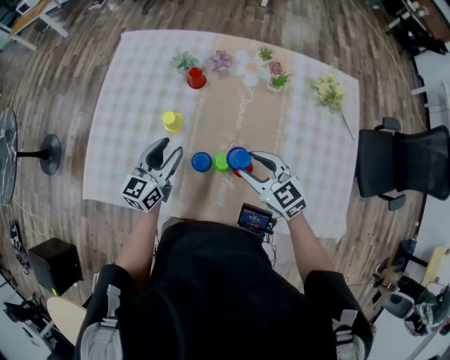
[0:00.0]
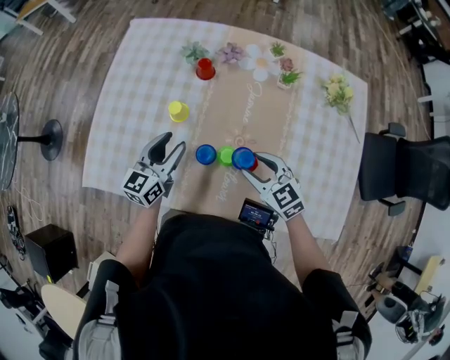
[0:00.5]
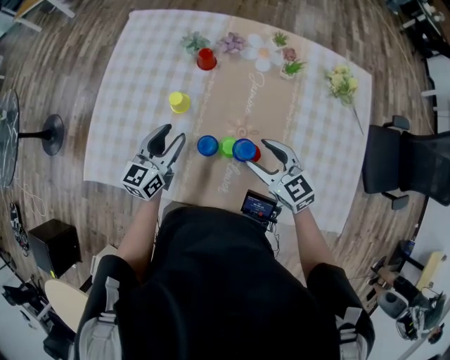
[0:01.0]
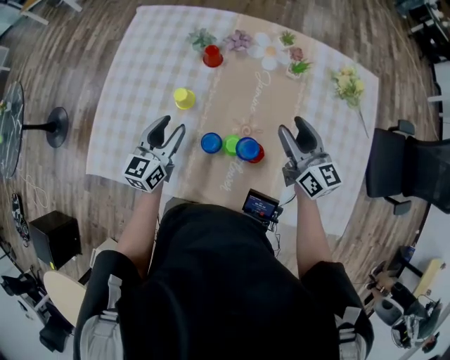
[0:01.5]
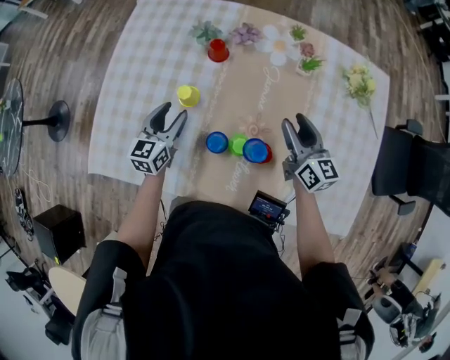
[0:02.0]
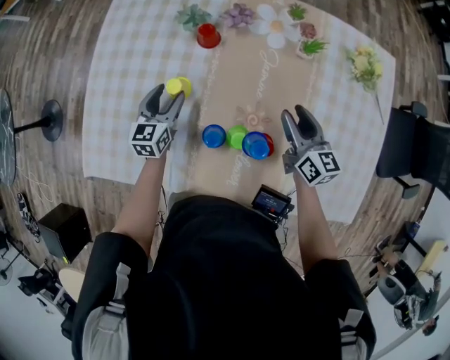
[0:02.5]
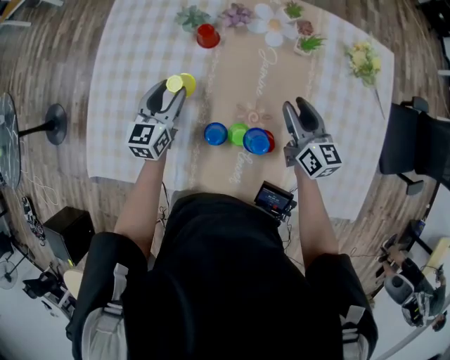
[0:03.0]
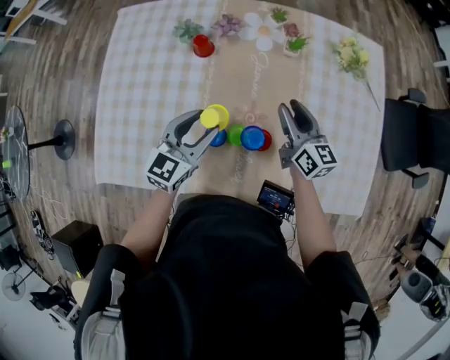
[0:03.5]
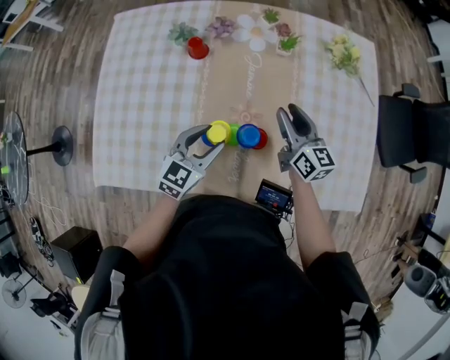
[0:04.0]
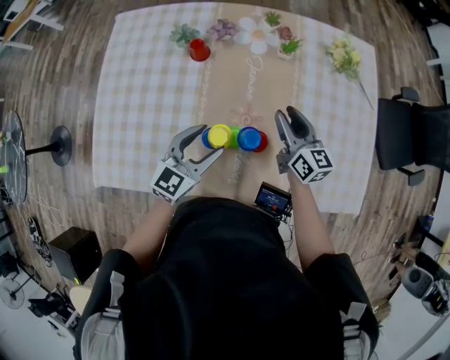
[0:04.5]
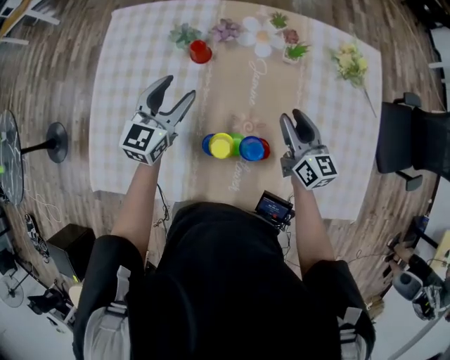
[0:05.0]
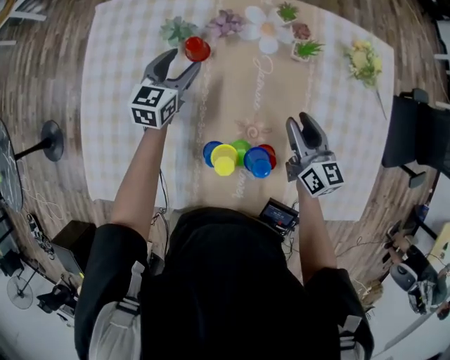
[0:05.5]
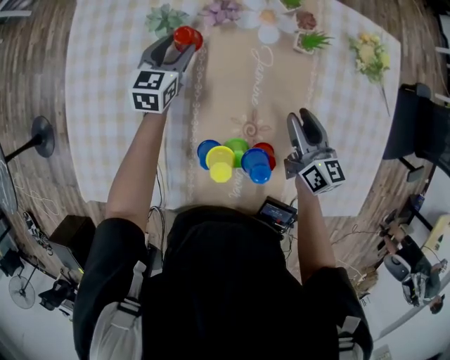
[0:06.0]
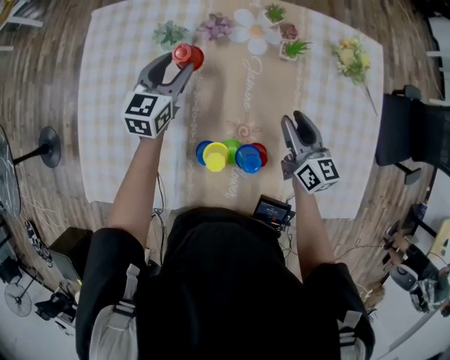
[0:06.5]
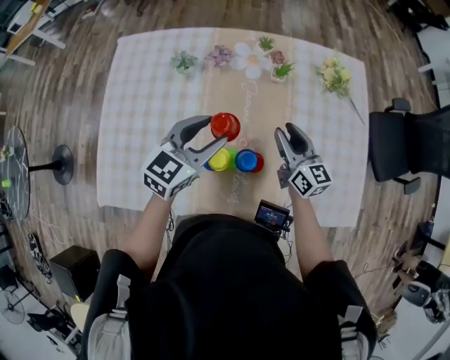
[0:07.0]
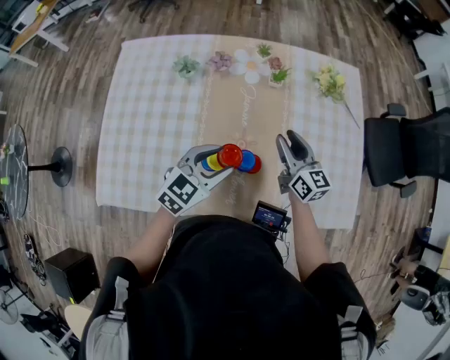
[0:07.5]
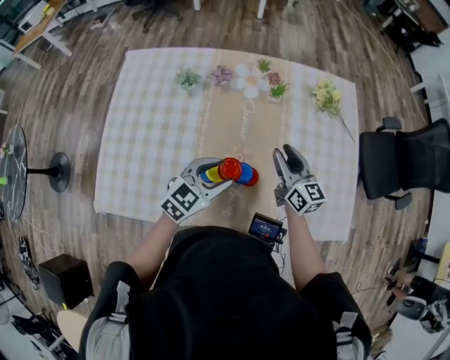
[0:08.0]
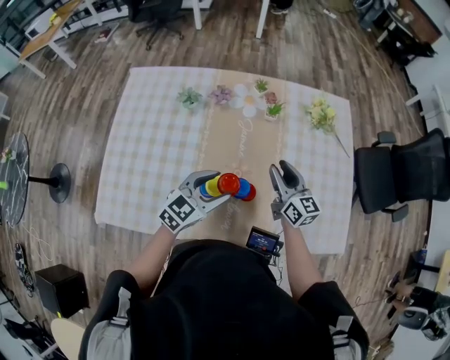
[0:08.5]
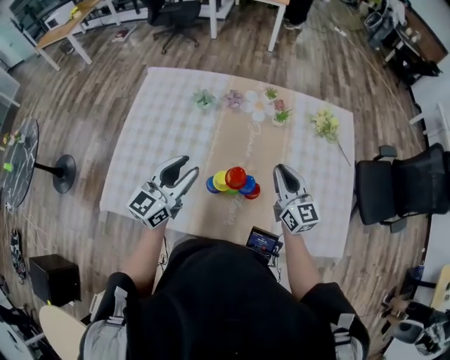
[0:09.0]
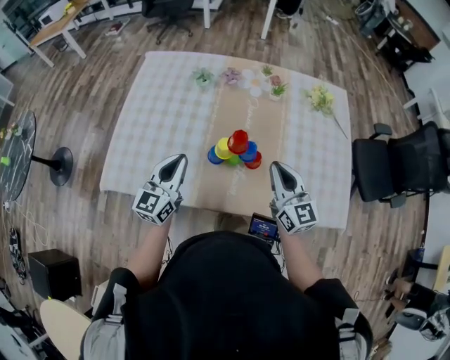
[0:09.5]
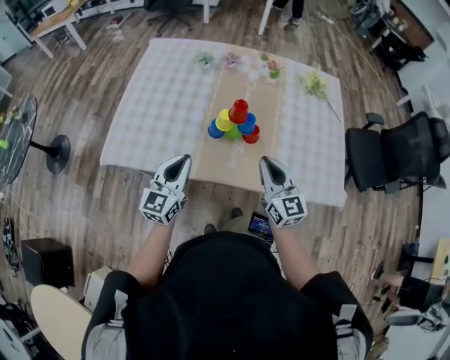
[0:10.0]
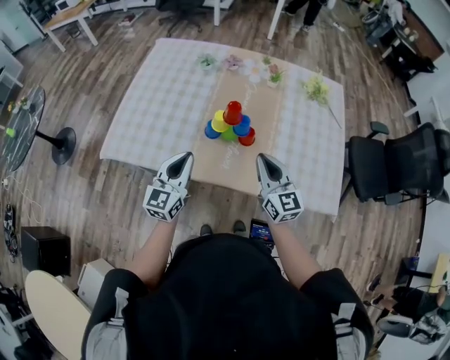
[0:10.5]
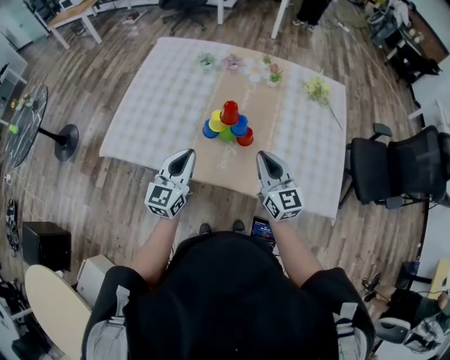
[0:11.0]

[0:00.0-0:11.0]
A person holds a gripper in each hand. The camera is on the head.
0:00.0 to 0:02.0: The left gripper shifts approximately 10 cm downward and forward, while the right gripper shifts some 15 cm to the right and forward, and changes its angle by roughly 40 degrees.
0:02.0 to 0:03.5: The left gripper travels to the right and upward by some 15 cm, and rotates approximately 20 degrees.
0:03.5 to 0:05.5: The left gripper moves forward and to the left, roughly 25 cm.
0:05.5 to 0:07.5: The left gripper is displaced backward, to the right and upward by approximately 30 cm, and swivels approximately 30 degrees; the right gripper moves upward and backward, some 10 cm.
0:07.5 to 0:09.0: The left gripper moves to the left and upward, some 15 cm, and rotates approximately 40 degrees, while the right gripper travels upward by some 5 cm, and closes.
0:09.0 to 0:11.0: The two grippers go roughly 20 cm backward. The left gripper closes its fingers.

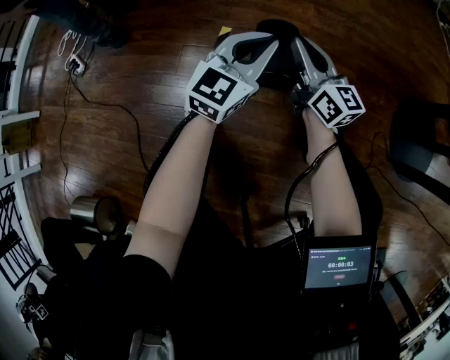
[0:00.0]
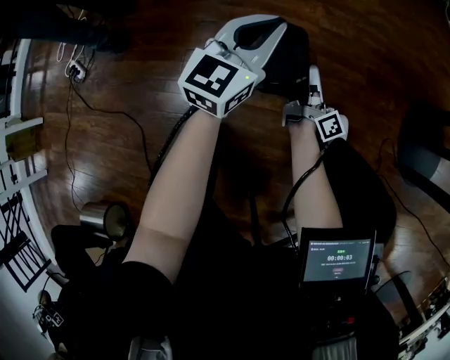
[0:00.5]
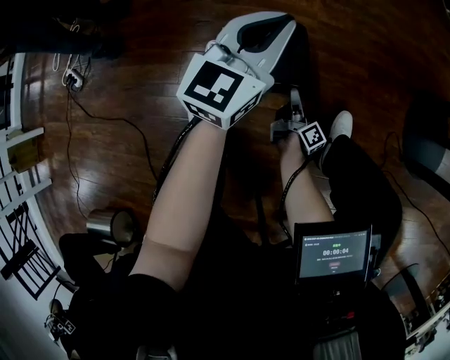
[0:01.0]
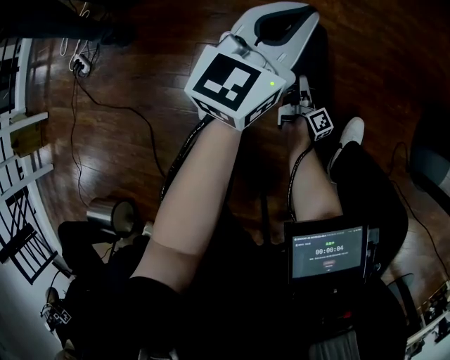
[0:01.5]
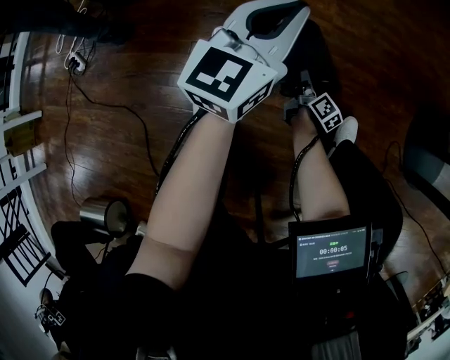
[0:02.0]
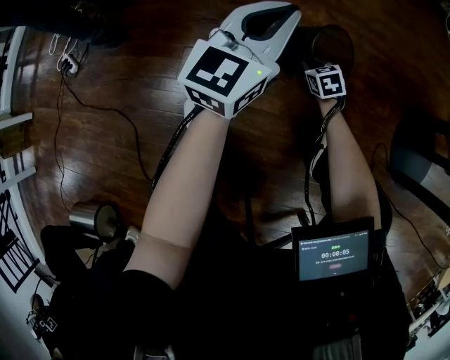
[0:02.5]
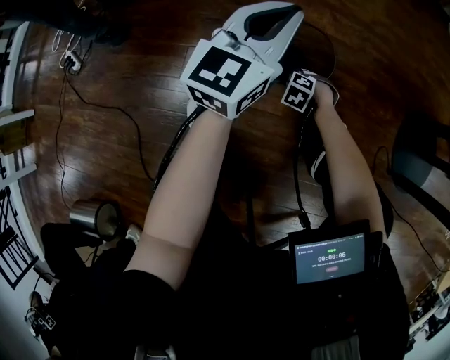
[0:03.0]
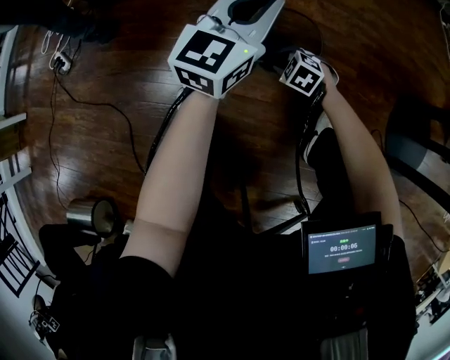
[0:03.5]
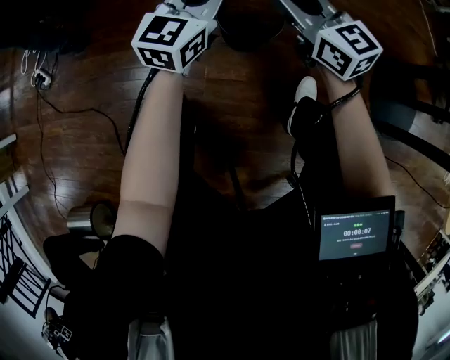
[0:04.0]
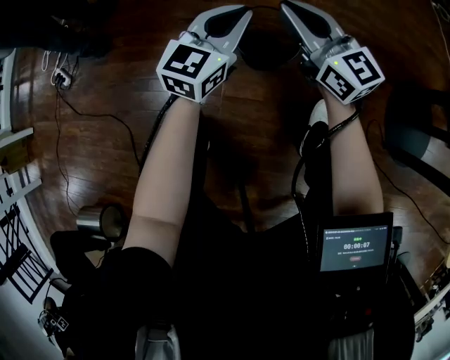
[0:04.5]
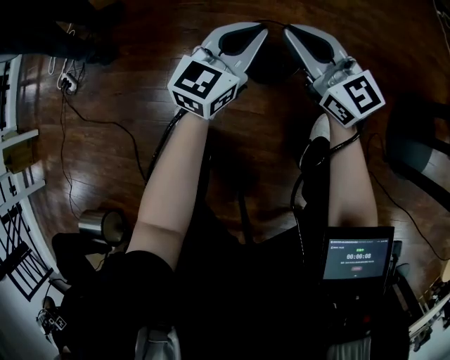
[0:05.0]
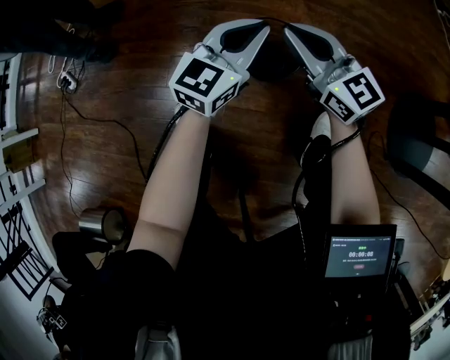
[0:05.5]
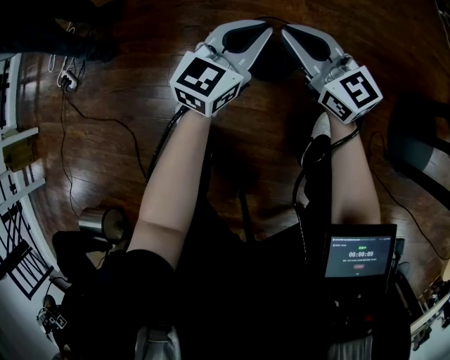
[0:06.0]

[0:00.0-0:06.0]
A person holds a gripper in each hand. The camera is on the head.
0:00.0 to 0:02.0: The right gripper goes some 30 cm downward, turns by approximately 50 degrees, and opens and closes again. Meanwhile the left gripper is displaced forward and upward by roughly 10 cm.
0:02.0 to 0:04.0: The right gripper is displaced upward by some 35 cm, rolls counterclockwise, seen from behind, by about 60 degrees, and opens and closes again.
0:04.0 to 0:06.0: The left gripper changes place by about 5 cm.

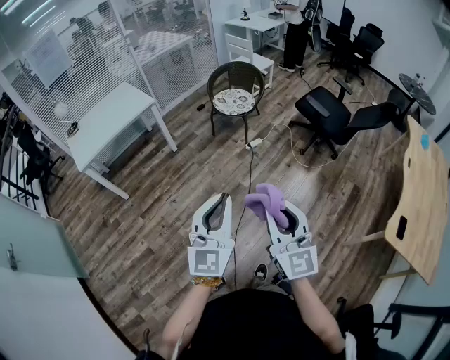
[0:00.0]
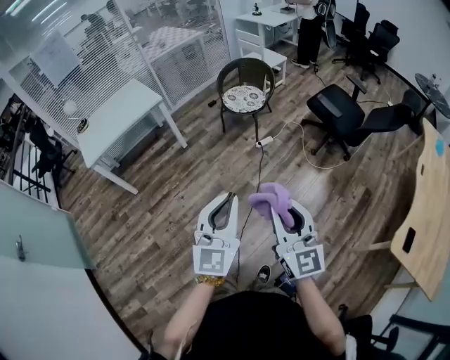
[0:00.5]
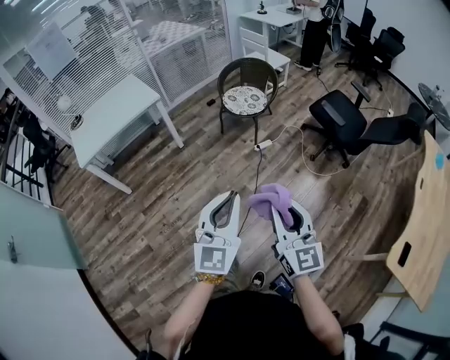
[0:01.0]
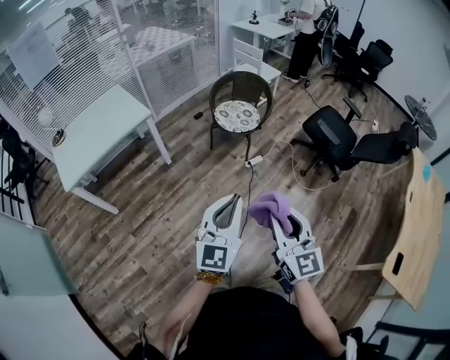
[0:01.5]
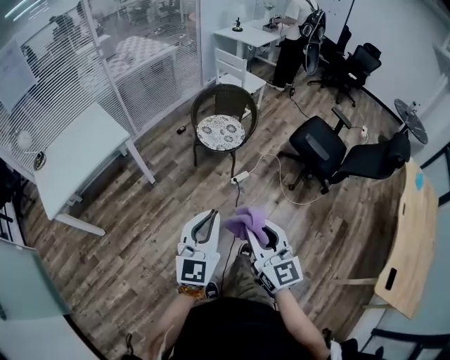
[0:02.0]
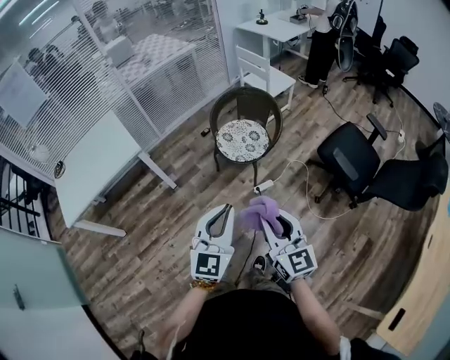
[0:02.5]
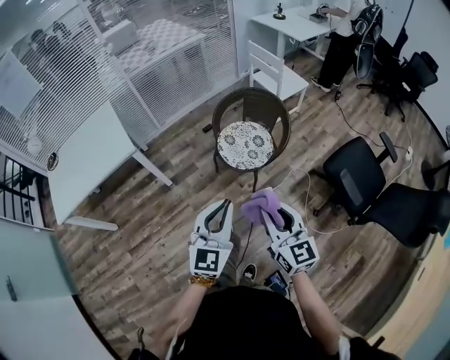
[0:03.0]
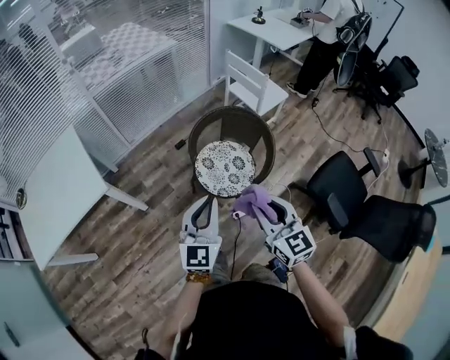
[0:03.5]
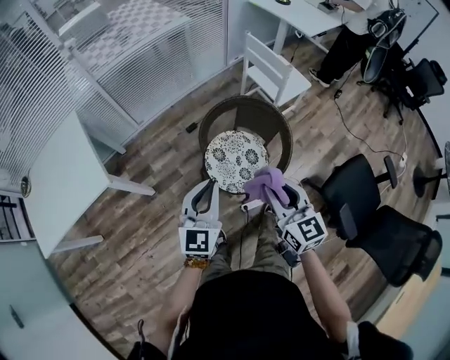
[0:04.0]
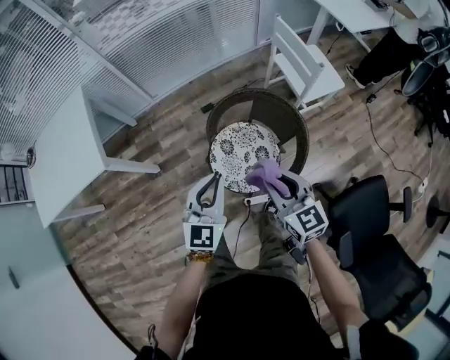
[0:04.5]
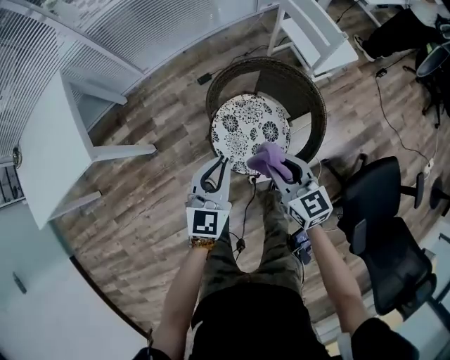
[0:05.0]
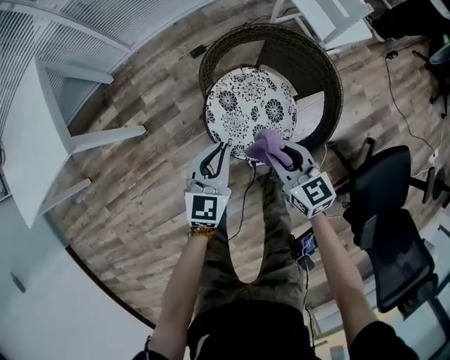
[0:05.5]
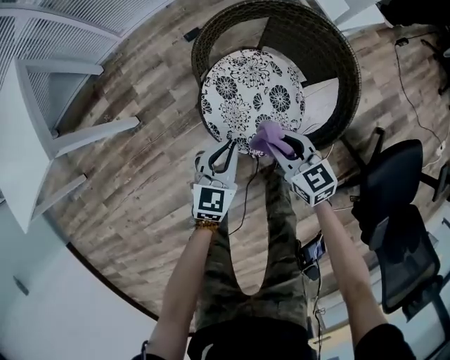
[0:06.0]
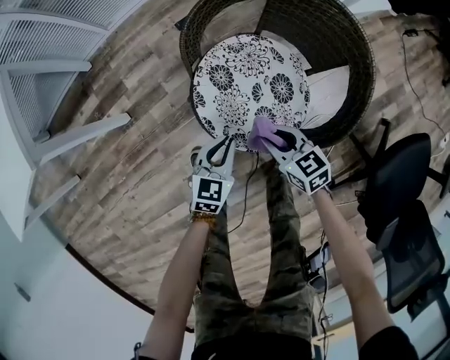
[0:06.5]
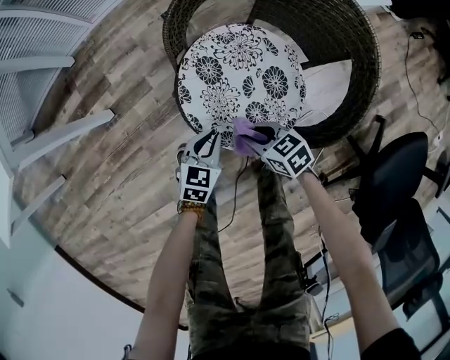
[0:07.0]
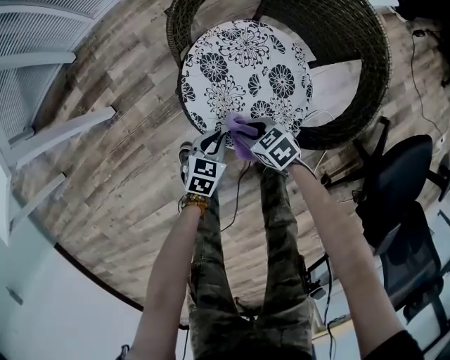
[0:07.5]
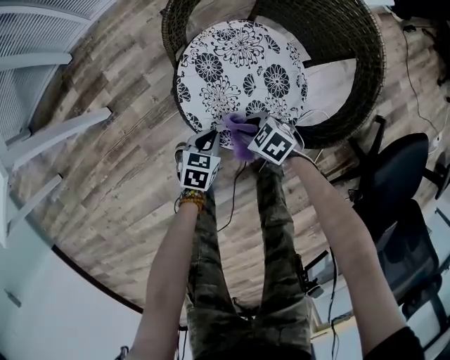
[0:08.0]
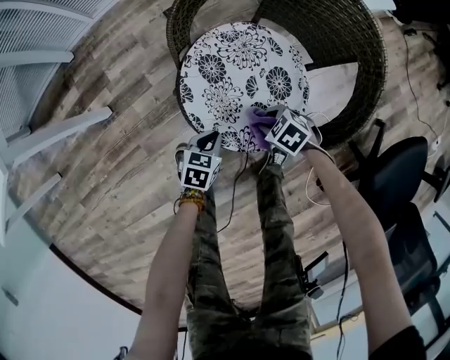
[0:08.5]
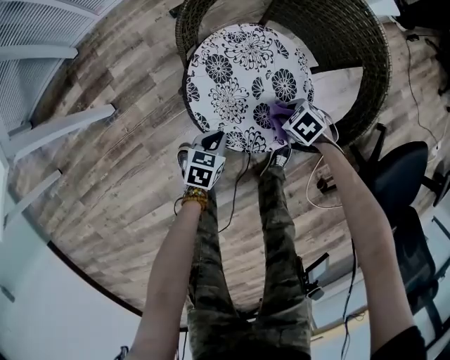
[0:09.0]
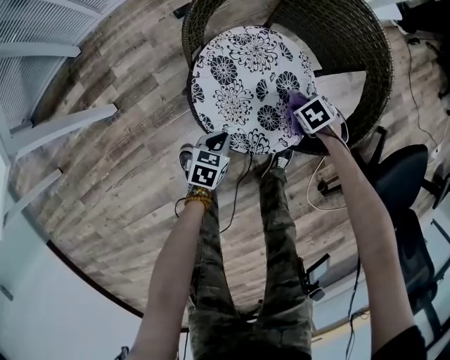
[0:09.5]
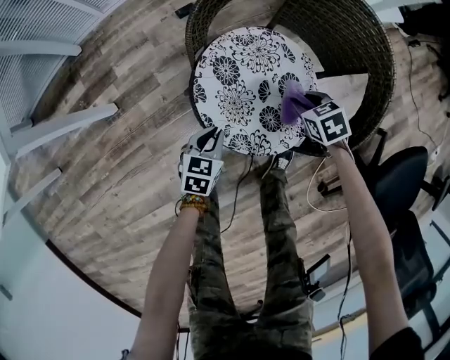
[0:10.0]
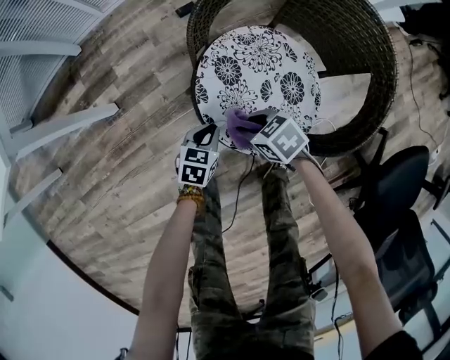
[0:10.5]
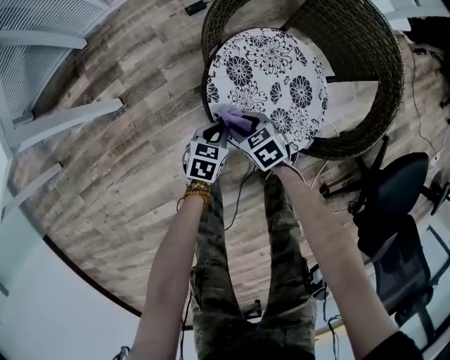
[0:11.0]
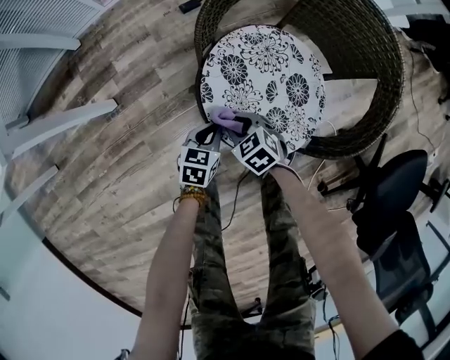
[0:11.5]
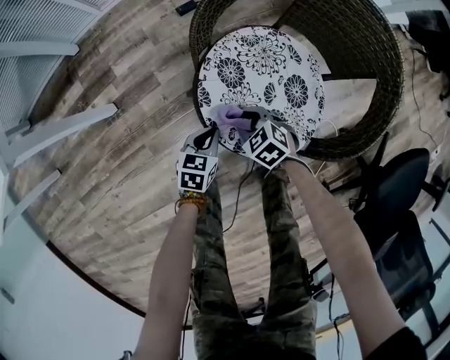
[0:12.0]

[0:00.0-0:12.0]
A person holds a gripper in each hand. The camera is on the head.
0:00.0 to 0:02.0: The grippers both shift forward by some 35 cm.
0:02.0 to 0:04.0: The pair of grippers is taken forward, some 70 cm.
0:04.0 to 0:06.0: Both grippers travel together downward, roughly 40 cm. The right gripper changes its angle by some 30 degrees, while the left gripper rotates roughly 20 degrees.
0:06.0 to 0:08.0: Both grippers move downward, roughly 25 cm. The right gripper changes its angle by about 40 degrees. Meanwhile the left gripper changes its angle by some 30 degrees.
0:08.0 to 0:10.0: The right gripper changes place by approximately 15 cm, and turns by approximately 30 degrees. The left gripper ends up about 5 cm from where it was.
0:10.0 to 0:12.0: The right gripper shifts by roughly 20 cm, and swivels about 20 degrees.
